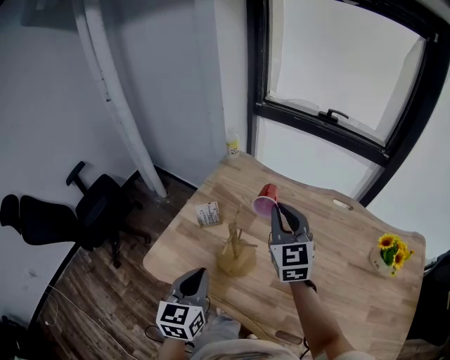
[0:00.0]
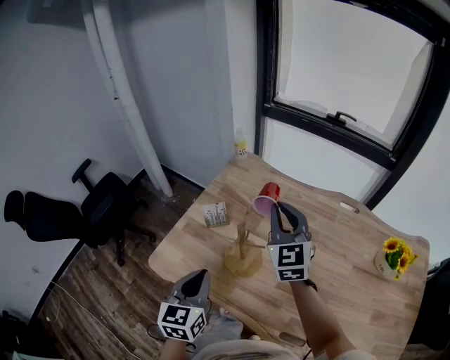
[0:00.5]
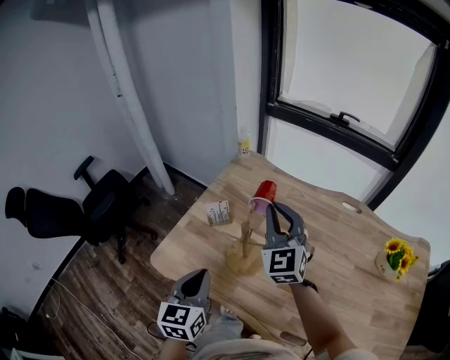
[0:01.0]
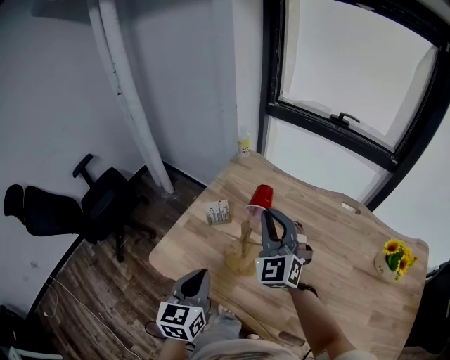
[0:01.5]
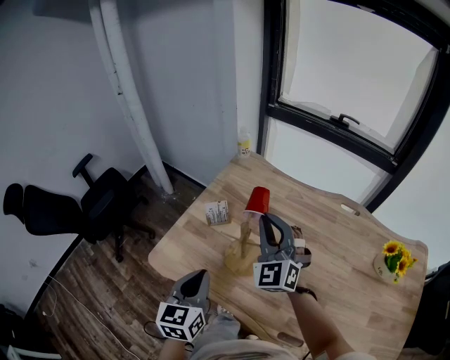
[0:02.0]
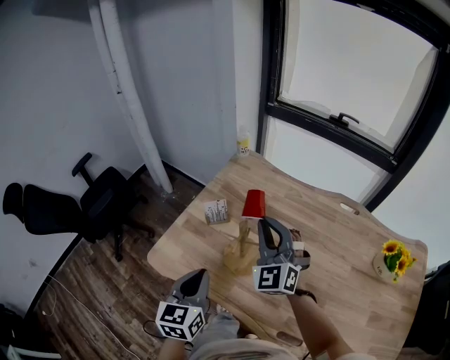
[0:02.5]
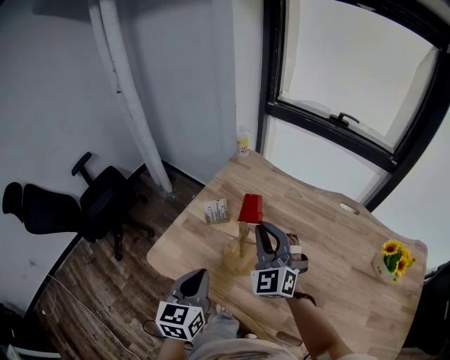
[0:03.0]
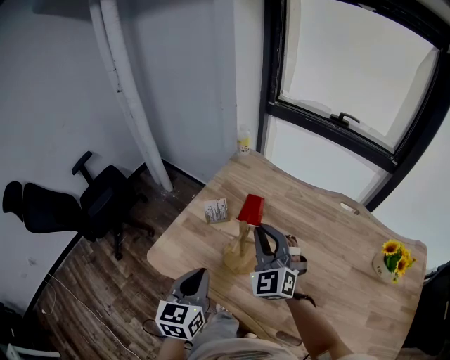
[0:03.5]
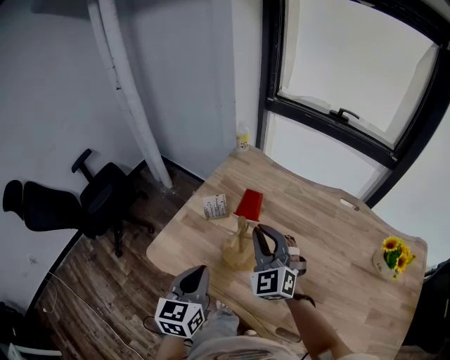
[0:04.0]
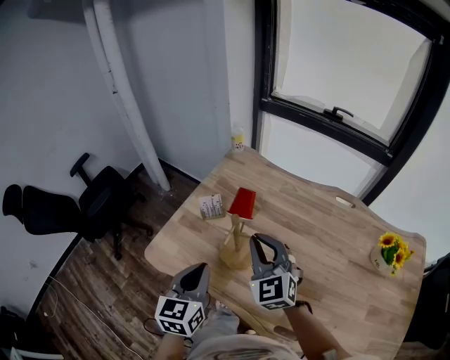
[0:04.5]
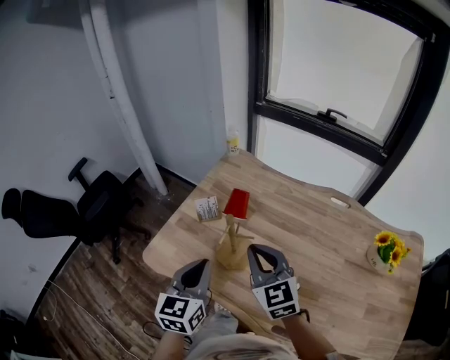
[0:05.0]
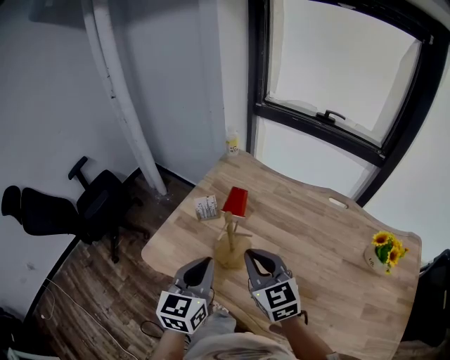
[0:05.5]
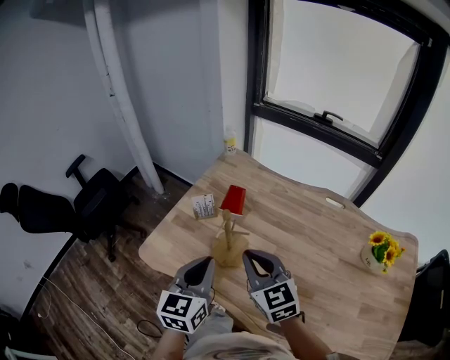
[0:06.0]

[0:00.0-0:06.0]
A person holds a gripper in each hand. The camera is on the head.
0:00.0 to 0:02.0: The right gripper shifts about 5 cm to the left, and turns by roughly 30 degrees.
0:02.0 to 0:04.0: The right gripper ends up roughly 5 cm from where it was.
0:04.0 to 0:06.0: The left gripper heads to the right, covering some 5 cm; the right gripper shifts some 10 cm backward, and rotates some 30 degrees.

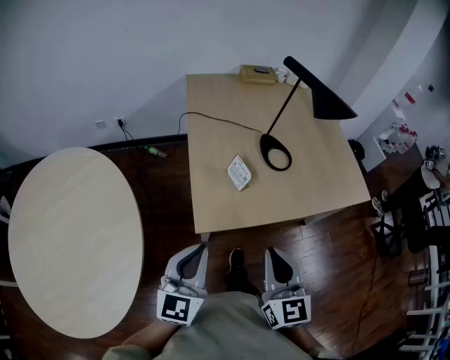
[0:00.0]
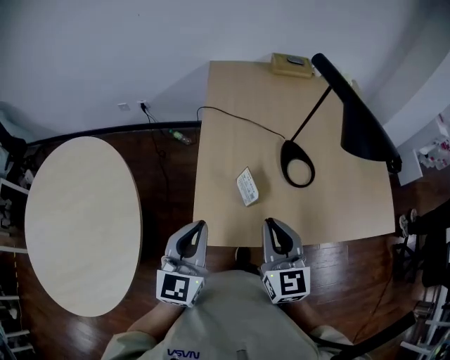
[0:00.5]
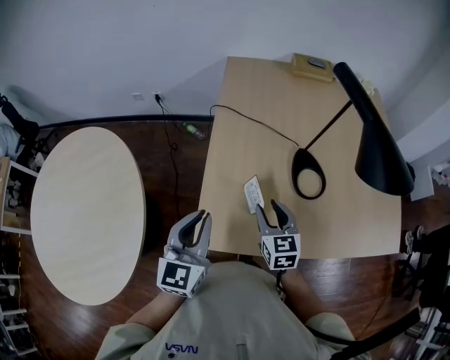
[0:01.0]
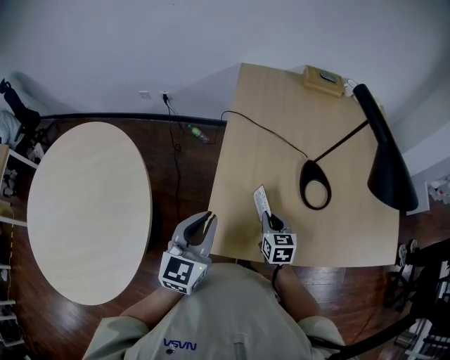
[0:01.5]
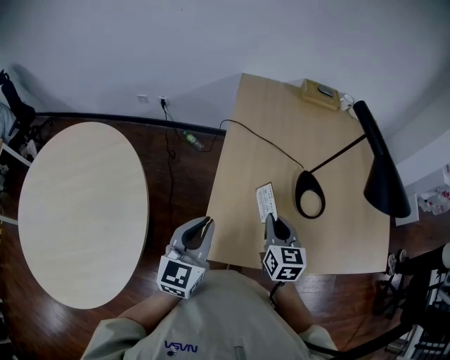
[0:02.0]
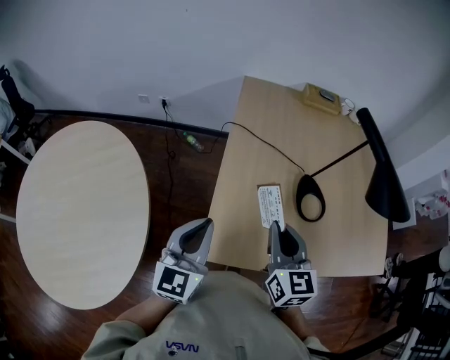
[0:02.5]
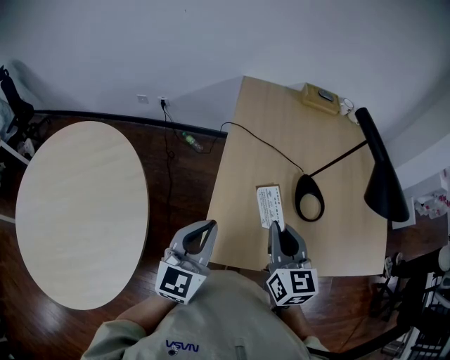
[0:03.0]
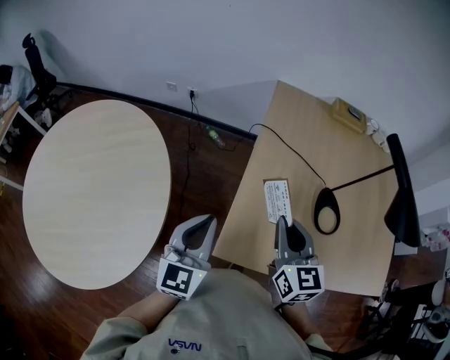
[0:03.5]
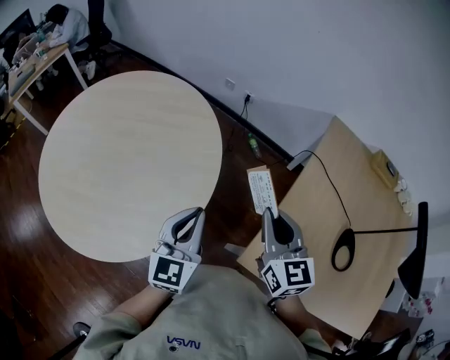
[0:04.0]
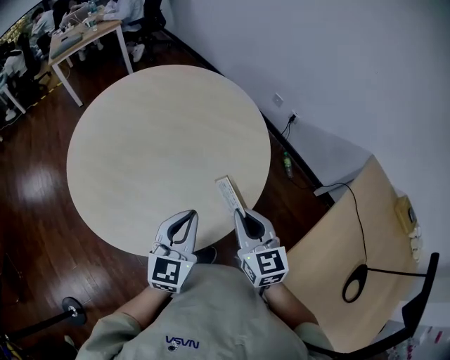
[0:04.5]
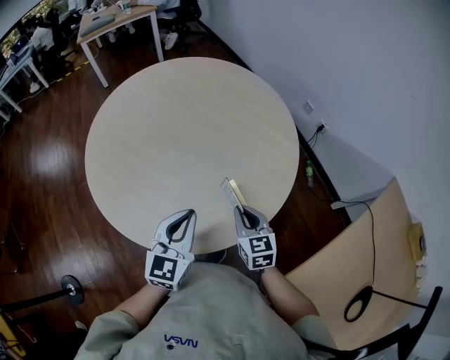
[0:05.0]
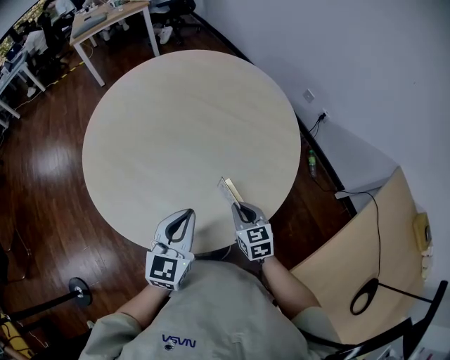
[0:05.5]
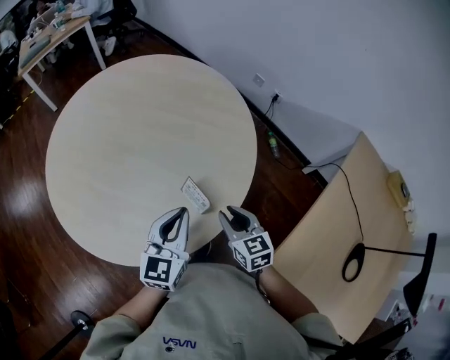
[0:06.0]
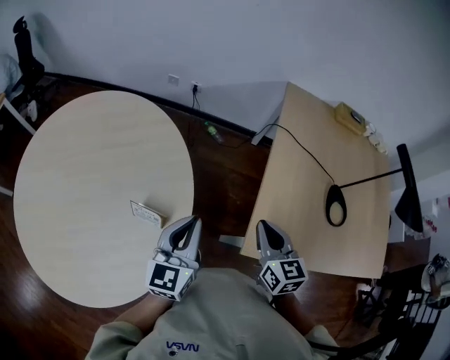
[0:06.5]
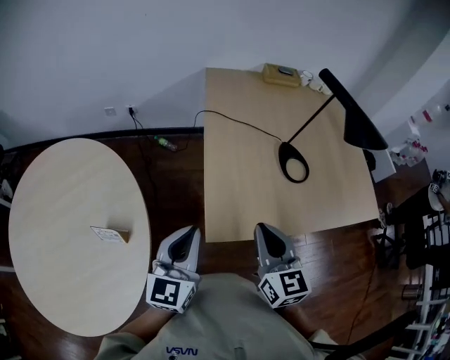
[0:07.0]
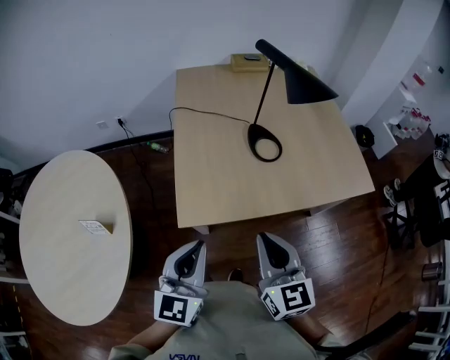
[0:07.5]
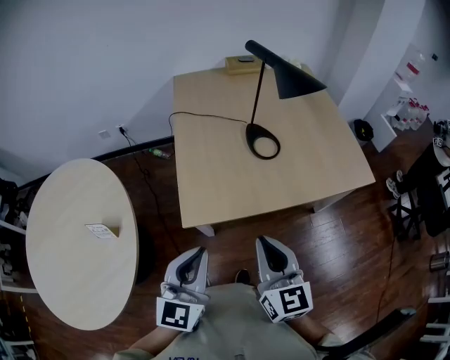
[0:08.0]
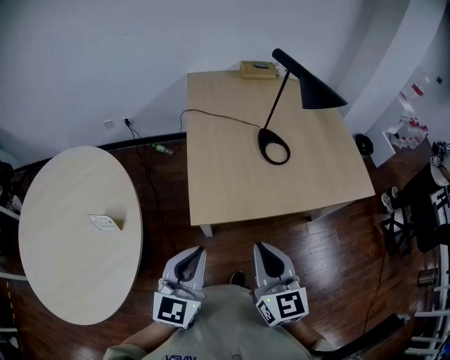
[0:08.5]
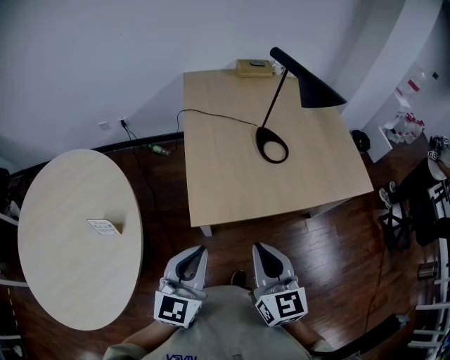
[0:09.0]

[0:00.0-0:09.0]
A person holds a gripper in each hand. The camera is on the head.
0:00.0 to 0:02.0: Both grippers travel together forward, roughly 25 cm. The right gripper opens and closes again.
0:02.0 to 0:04.5: The pair of grippers is taken about 50 cm. The right gripper rotates about 60 degrees; the left gripper rotates some 50 degrees.
0:04.5 to 0:07.0: The right gripper travels downward and back again, some 20 cm each way, and turns by roughly 60 degrees. Meanwhile the left gripper ends up some 30 cm from where it was, and changes its angle by some 50 degrees.
0:07.0 to 0:09.0: The two grippers go about 15 cm backward and to the right.

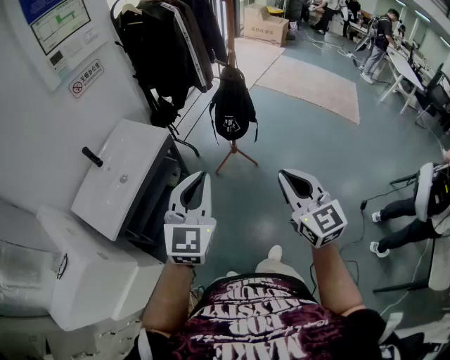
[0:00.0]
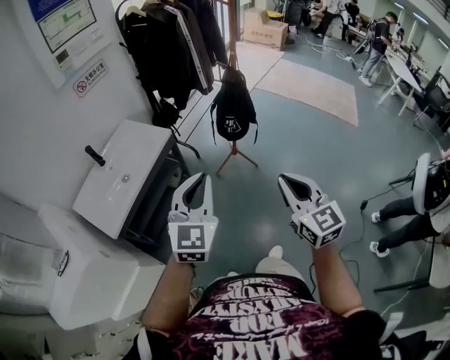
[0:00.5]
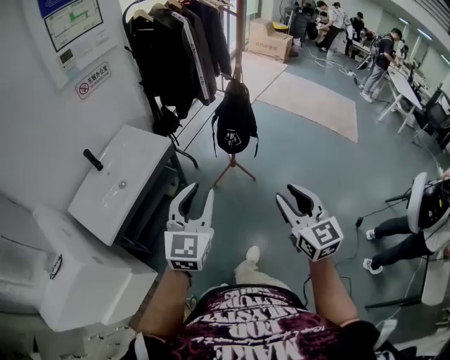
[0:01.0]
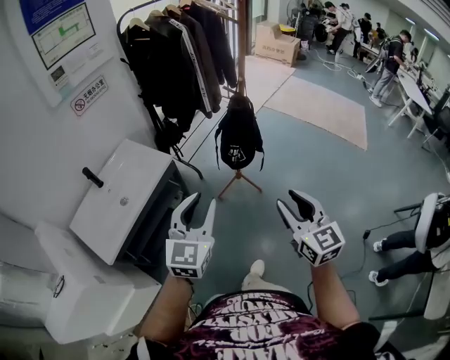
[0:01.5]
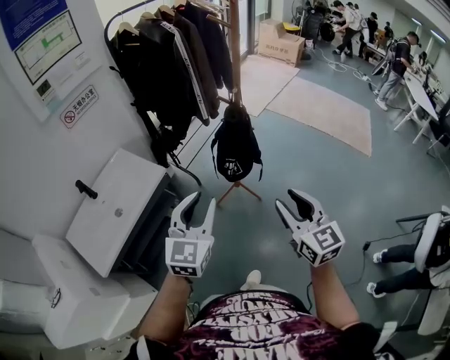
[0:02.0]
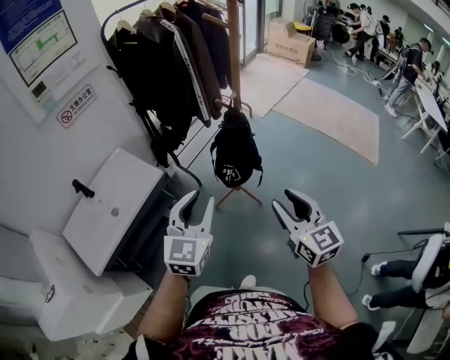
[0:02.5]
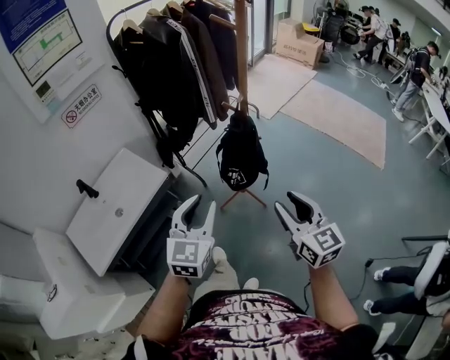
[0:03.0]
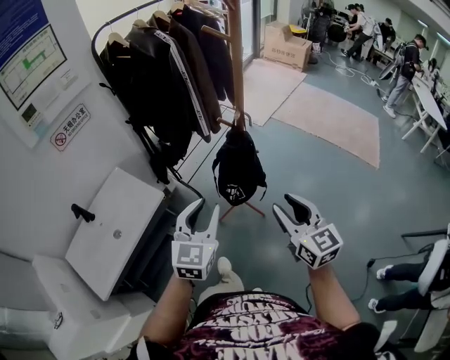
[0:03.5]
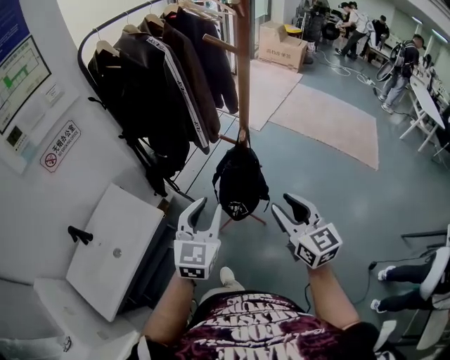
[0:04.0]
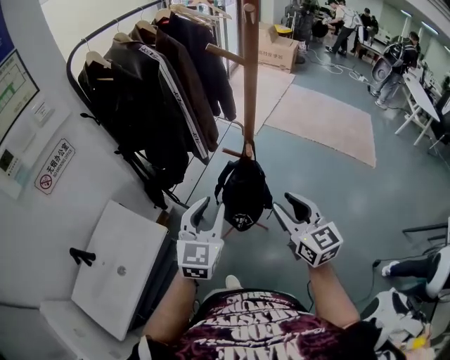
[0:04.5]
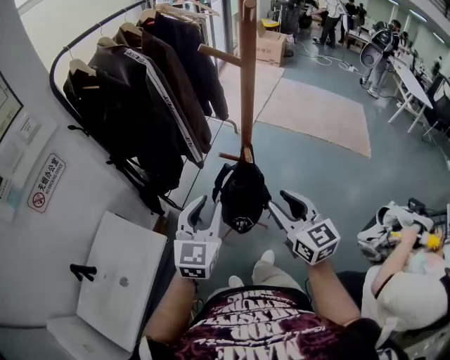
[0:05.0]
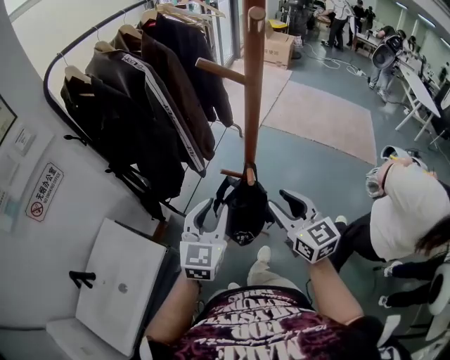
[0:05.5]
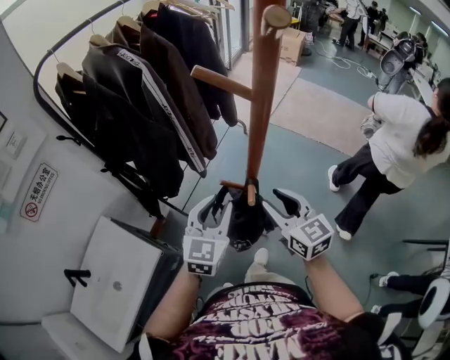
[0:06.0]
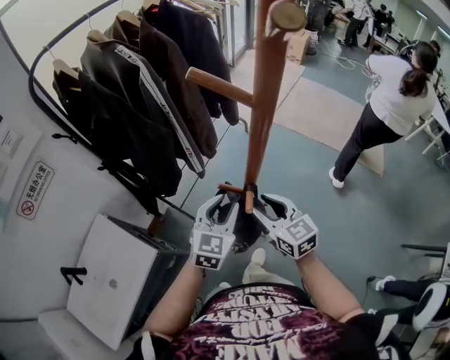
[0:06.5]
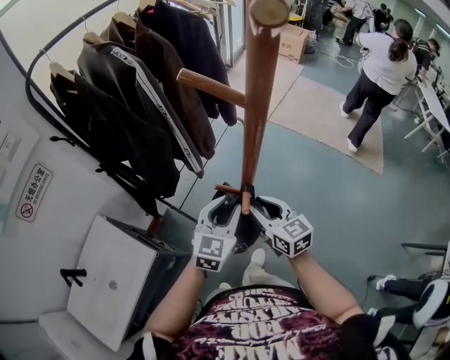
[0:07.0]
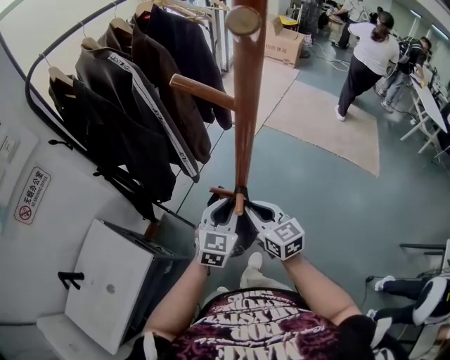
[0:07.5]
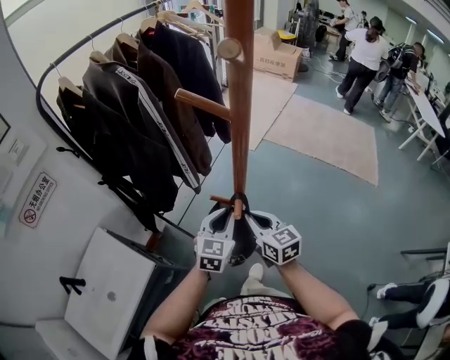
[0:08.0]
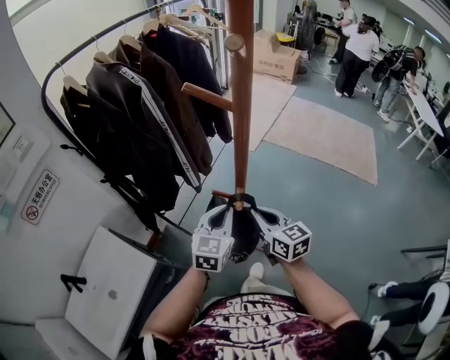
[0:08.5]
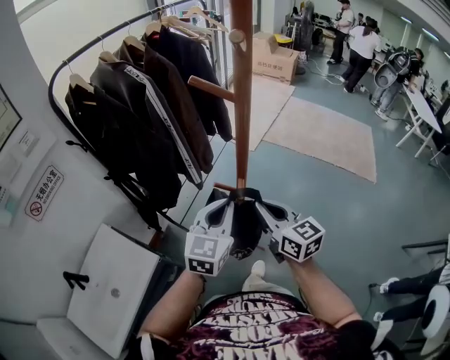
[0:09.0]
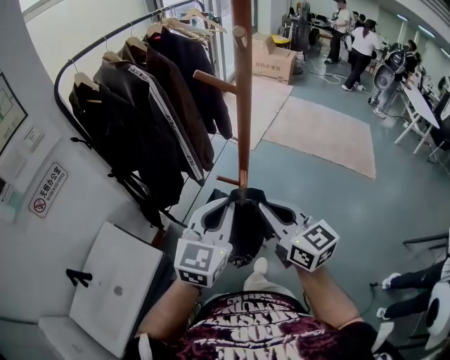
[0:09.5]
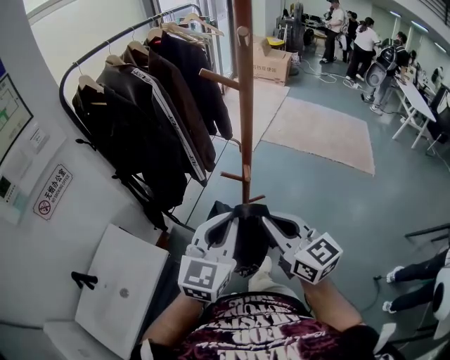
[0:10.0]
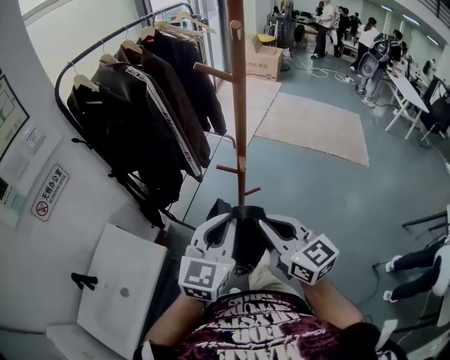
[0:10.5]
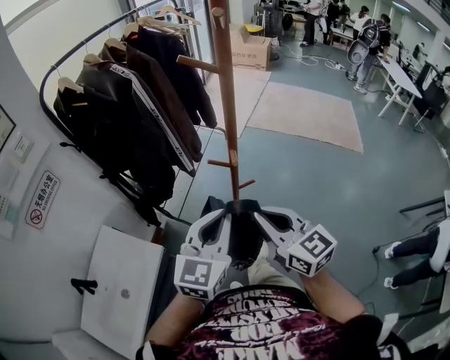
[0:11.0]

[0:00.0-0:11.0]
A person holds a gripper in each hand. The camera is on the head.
0:00.0 to 0:02.0: Both grippers move forward, some 20 cm. The left gripper opens its fingers. Meanwhile the right gripper opens its fingers.
0:02.0 to 0:03.5: Both grippers travel together forward, some 15 cm.
0:03.5 to 0:05.5: The two grippers go roughly 25 cm forward.
0:05.5 to 0:07.5: The right gripper goes about 15 cm downward and forward, and closes; the left gripper heads downward, to the right and forward, covering approximately 15 cm.
0:07.5 to 0:09.0: The two grippers go about 15 cm upward and backward. The left gripper closes up.
0:09.0 to 0:11.0: Both grippers move backward, roughly 15 cm.

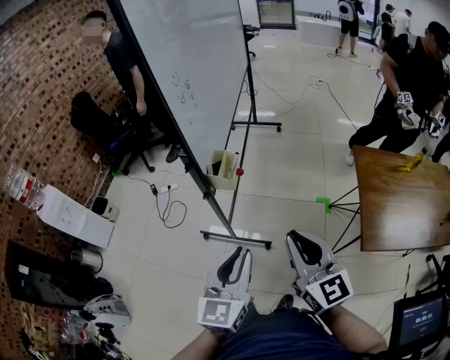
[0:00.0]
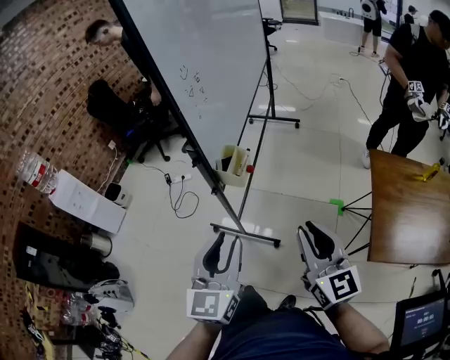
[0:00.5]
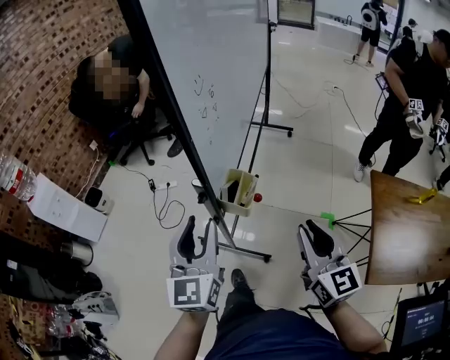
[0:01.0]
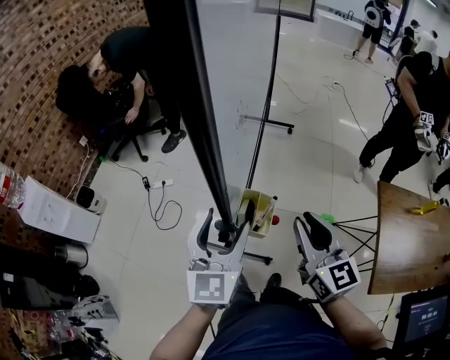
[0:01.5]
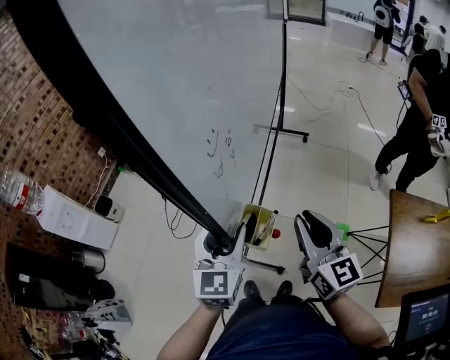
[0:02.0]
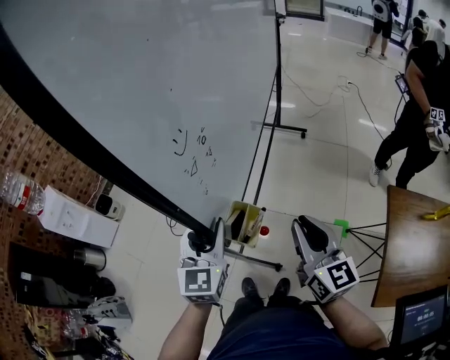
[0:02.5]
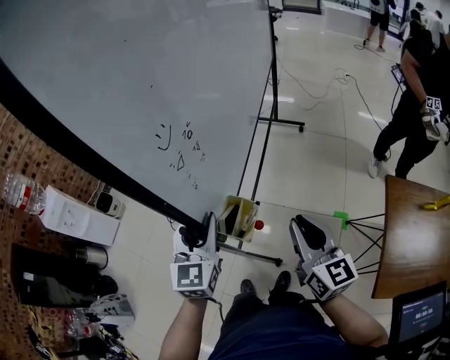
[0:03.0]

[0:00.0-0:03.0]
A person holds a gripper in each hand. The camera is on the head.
0:00.0 to 0:01.5: The grippers both shift forward by some 20 cm. The left gripper opens its fingers.
0:01.5 to 0:03.0: The left gripper closes up.
